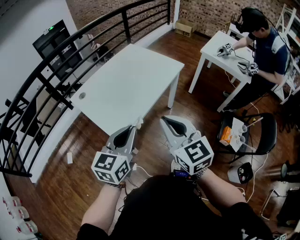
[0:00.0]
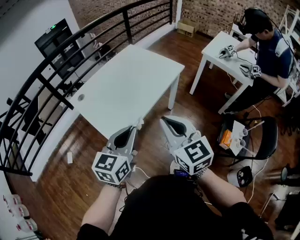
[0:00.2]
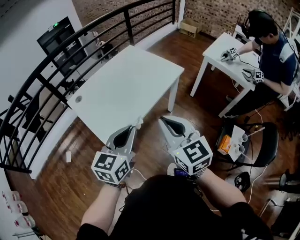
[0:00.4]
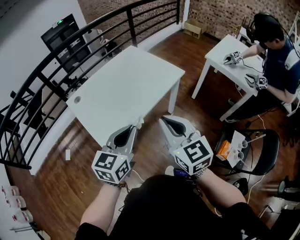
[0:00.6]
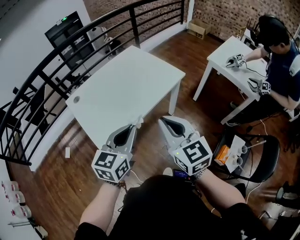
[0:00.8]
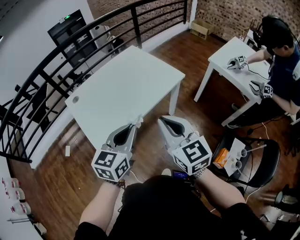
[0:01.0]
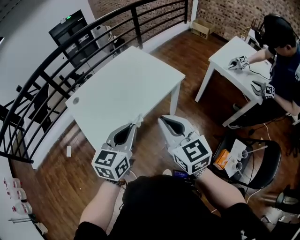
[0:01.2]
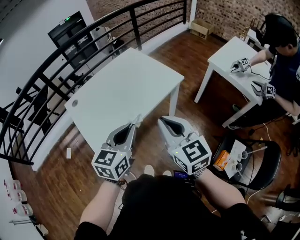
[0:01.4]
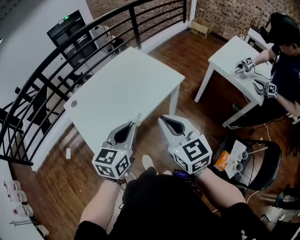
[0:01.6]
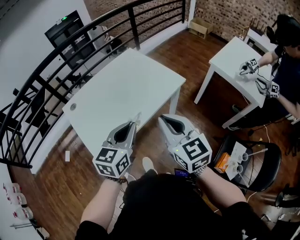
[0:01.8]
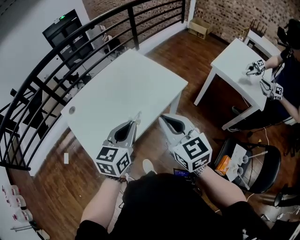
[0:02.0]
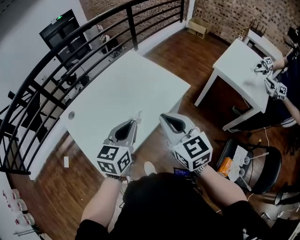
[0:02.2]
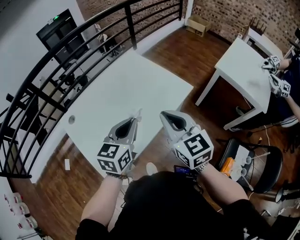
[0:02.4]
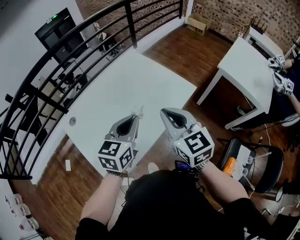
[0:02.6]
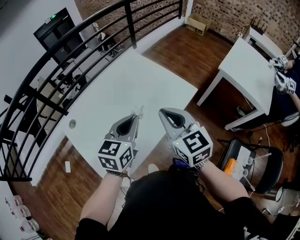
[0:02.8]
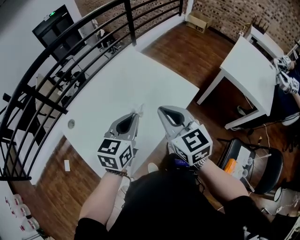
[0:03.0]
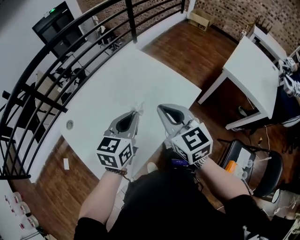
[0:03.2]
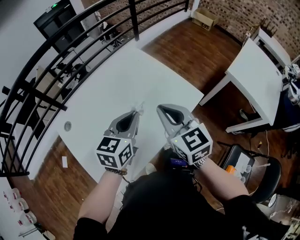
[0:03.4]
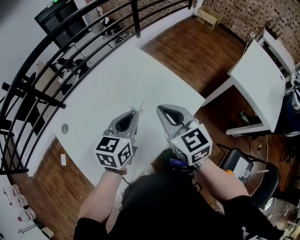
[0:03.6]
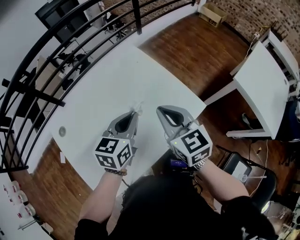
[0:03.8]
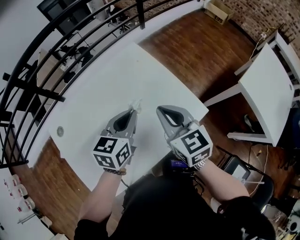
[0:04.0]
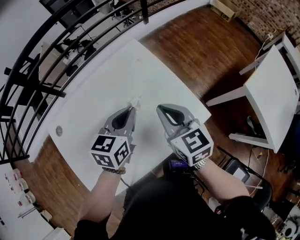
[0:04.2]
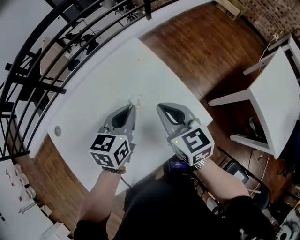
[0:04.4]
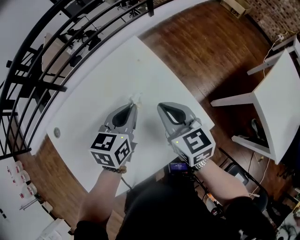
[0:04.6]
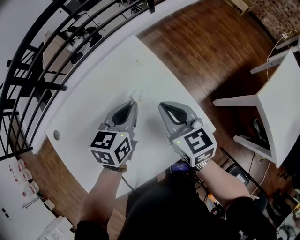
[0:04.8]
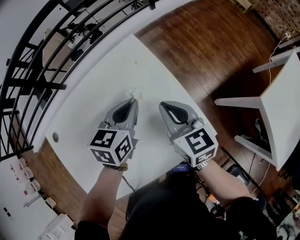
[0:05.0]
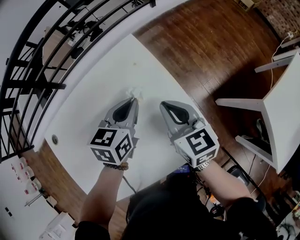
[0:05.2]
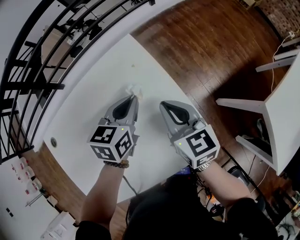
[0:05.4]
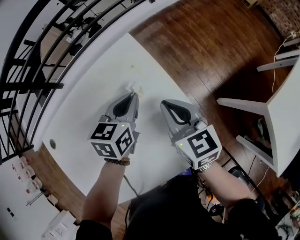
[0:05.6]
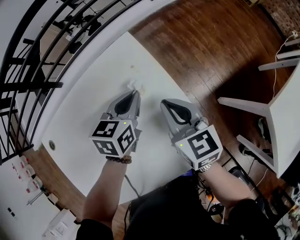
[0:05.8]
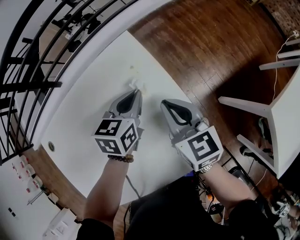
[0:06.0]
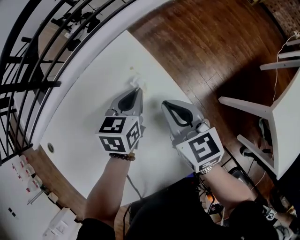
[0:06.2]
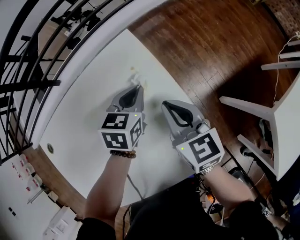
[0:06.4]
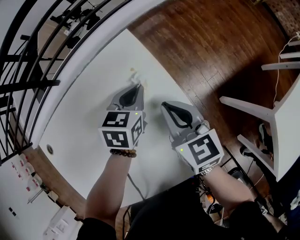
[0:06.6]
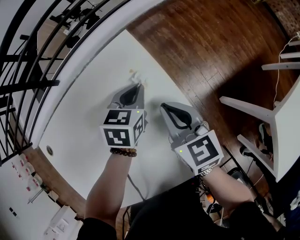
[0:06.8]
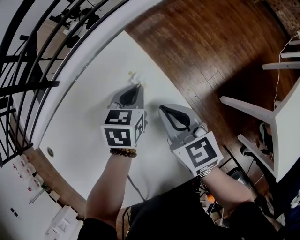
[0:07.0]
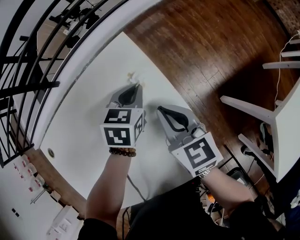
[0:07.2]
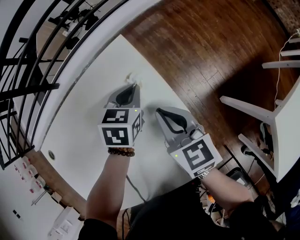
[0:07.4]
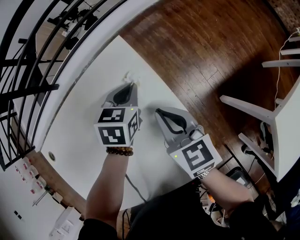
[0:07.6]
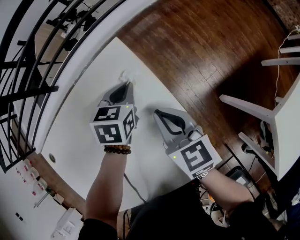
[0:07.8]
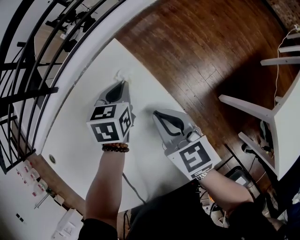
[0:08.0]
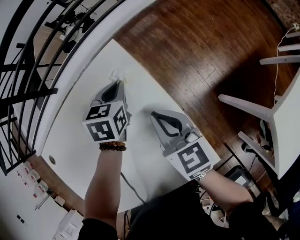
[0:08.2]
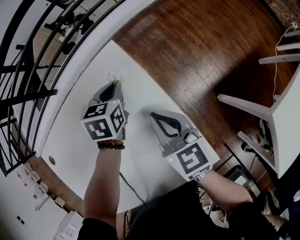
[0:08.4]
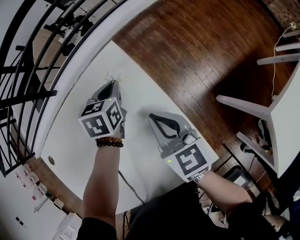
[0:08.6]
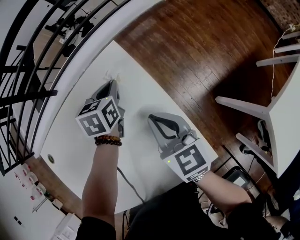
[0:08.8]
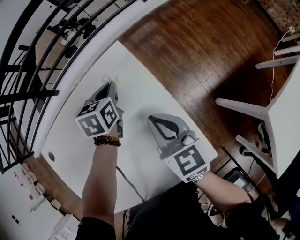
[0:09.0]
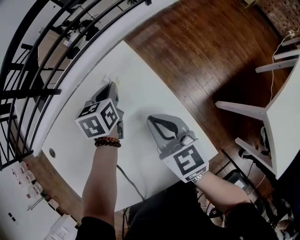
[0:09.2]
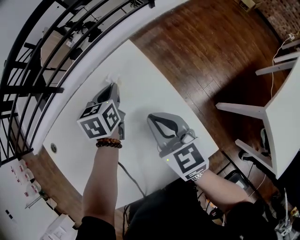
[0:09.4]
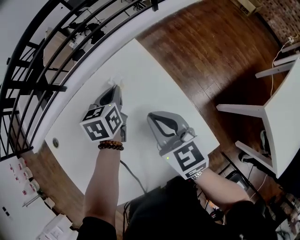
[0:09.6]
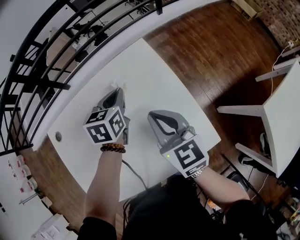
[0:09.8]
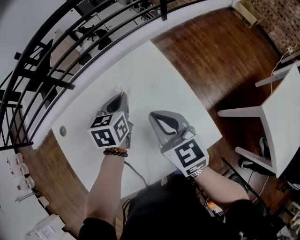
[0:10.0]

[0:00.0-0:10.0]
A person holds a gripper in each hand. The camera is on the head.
0:00.0 to 0:01.4: The grippers both shift to the right and forward by approximately 20 cm.
0:01.4 to 0:02.8: The left gripper heads forward, covering about 20 cm; the right gripper is displaced forward and to the left by approximately 20 cm.
0:02.8 to 0:04.2: The right gripper heads forward and downward, covering about 25 cm, while the left gripper heads forward, covering roughly 20 cm.
0:04.2 to 0:05.8: The grippers both shift forward and downward by approximately 20 cm.
0:05.8 to 0:07.2: The left gripper goes some 10 cm downward and forward.
0:07.2 to 0:08.6: The left gripper travels forward by roughly 5 cm.
0:08.6 to 0:10.0: The left gripper moves backward, upward and to the left, some 20 cm. The right gripper goes roughly 15 cm upward, to the left and backward.

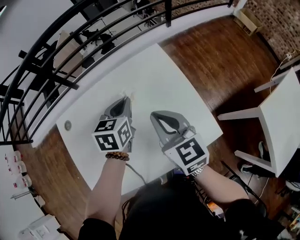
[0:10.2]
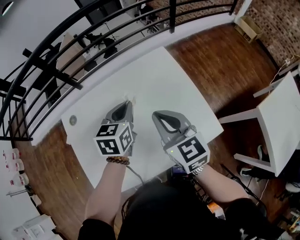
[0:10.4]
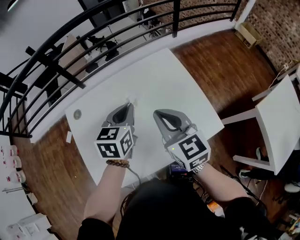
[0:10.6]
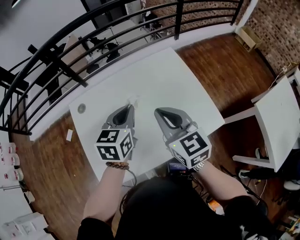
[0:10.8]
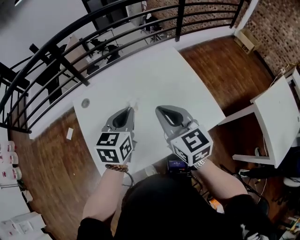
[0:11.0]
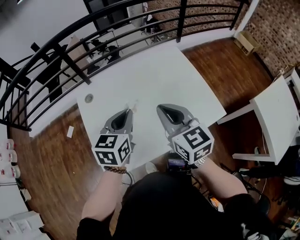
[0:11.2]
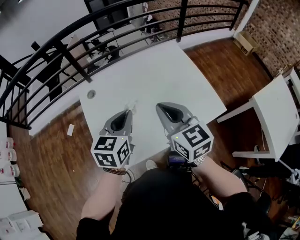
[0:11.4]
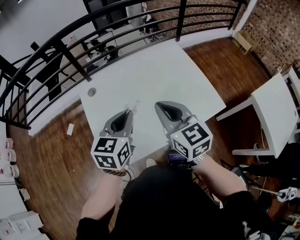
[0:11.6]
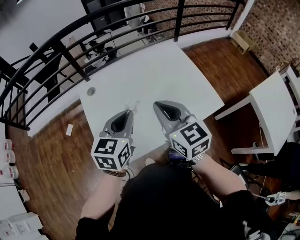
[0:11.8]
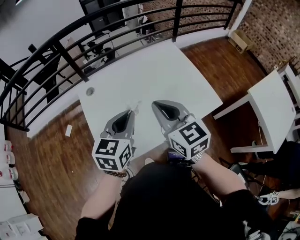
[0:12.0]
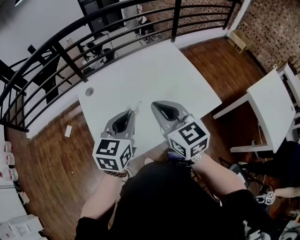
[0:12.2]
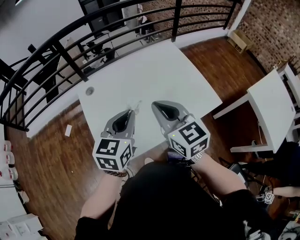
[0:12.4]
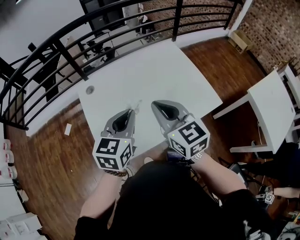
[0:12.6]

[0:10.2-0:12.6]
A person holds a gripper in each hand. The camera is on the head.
0:10.2 to 0:11.4: The left gripper is displaced backward and to the left by some 25 cm. The right gripper travels backward, to the left and upward by about 20 cm.
0:11.4 to 0:12.6: The left gripper shifts by some 5 cm.

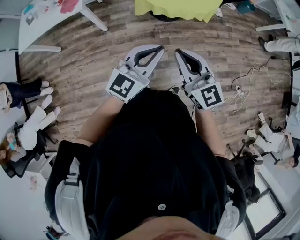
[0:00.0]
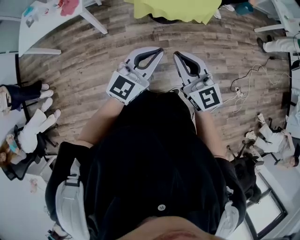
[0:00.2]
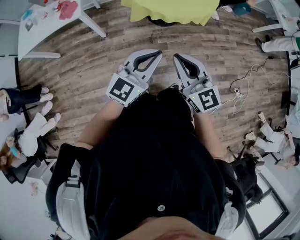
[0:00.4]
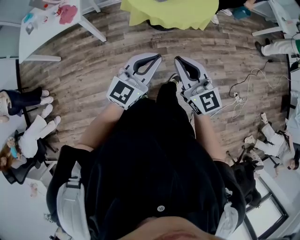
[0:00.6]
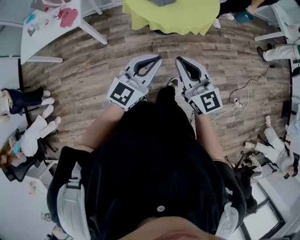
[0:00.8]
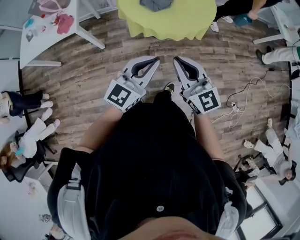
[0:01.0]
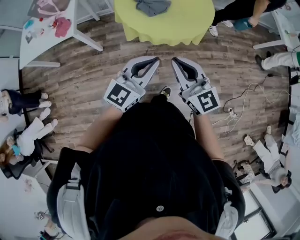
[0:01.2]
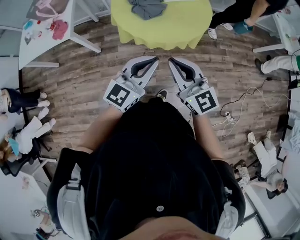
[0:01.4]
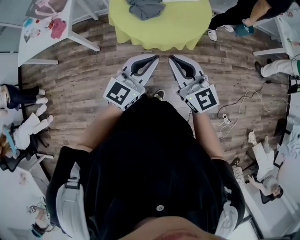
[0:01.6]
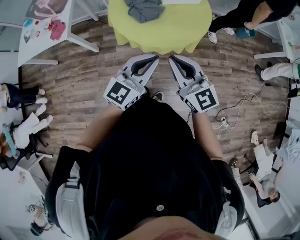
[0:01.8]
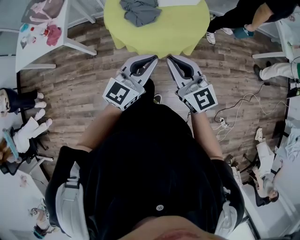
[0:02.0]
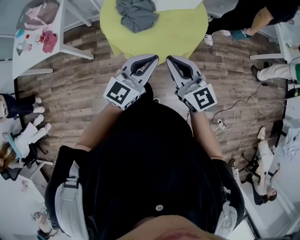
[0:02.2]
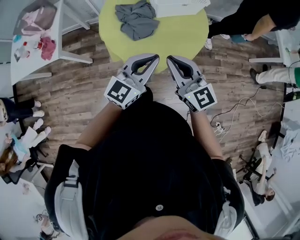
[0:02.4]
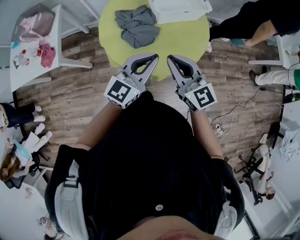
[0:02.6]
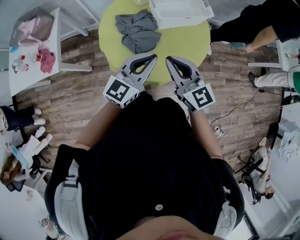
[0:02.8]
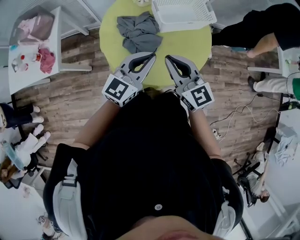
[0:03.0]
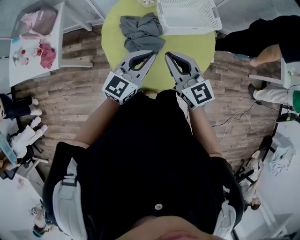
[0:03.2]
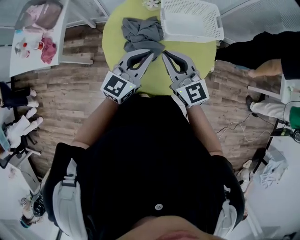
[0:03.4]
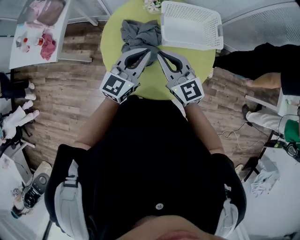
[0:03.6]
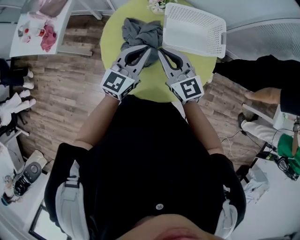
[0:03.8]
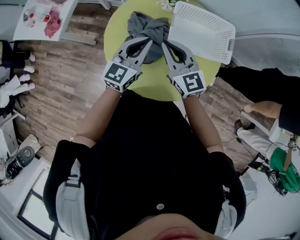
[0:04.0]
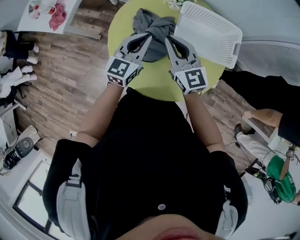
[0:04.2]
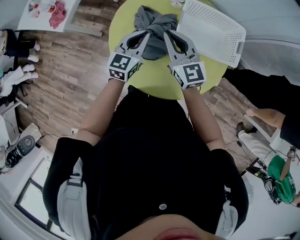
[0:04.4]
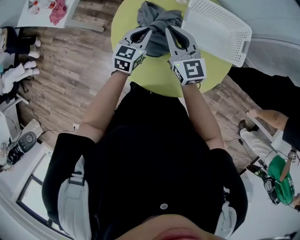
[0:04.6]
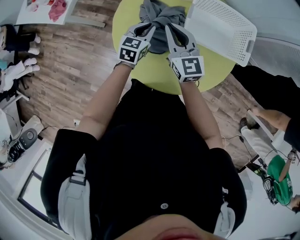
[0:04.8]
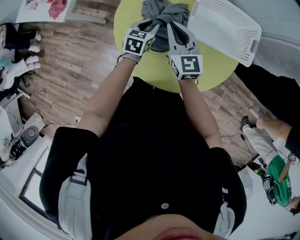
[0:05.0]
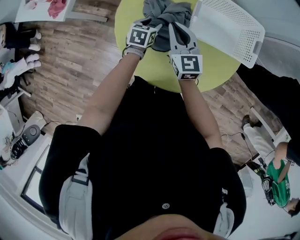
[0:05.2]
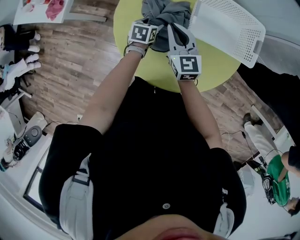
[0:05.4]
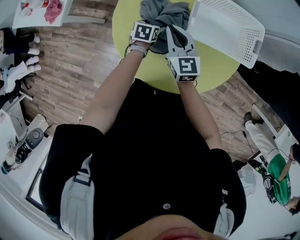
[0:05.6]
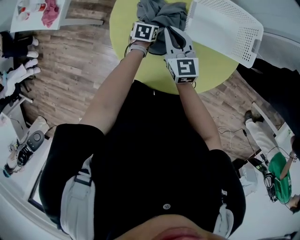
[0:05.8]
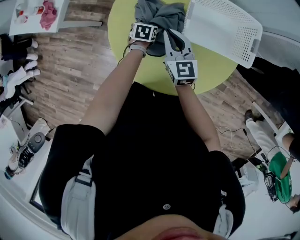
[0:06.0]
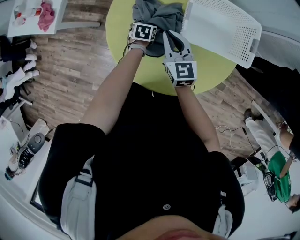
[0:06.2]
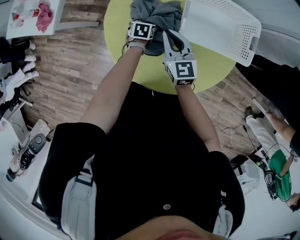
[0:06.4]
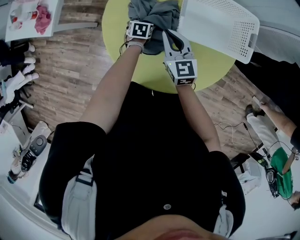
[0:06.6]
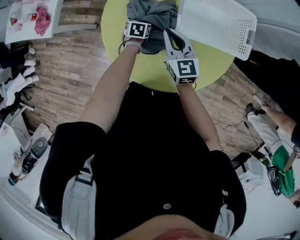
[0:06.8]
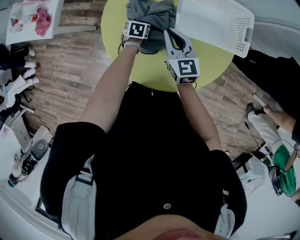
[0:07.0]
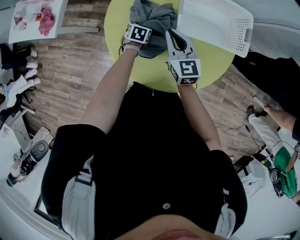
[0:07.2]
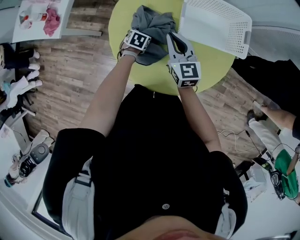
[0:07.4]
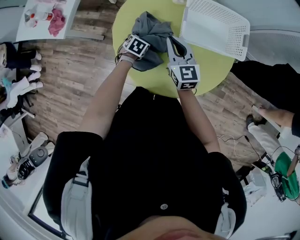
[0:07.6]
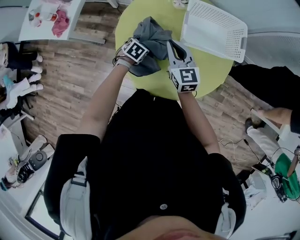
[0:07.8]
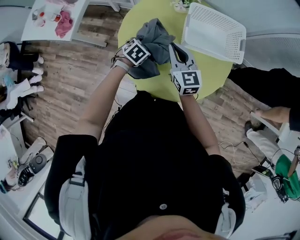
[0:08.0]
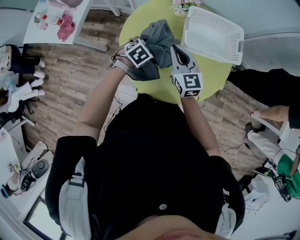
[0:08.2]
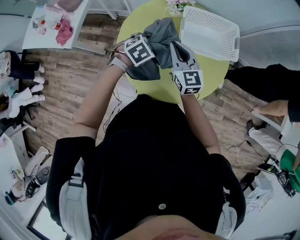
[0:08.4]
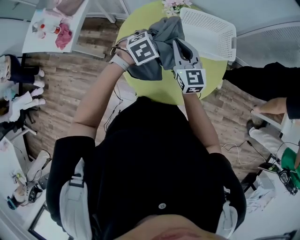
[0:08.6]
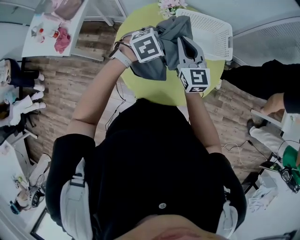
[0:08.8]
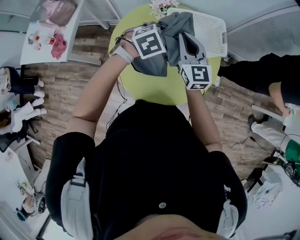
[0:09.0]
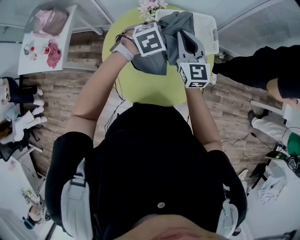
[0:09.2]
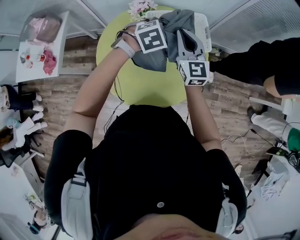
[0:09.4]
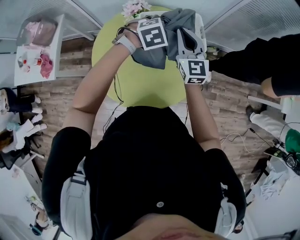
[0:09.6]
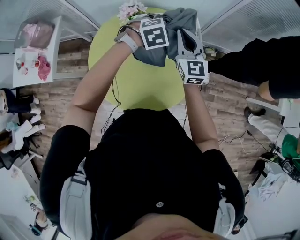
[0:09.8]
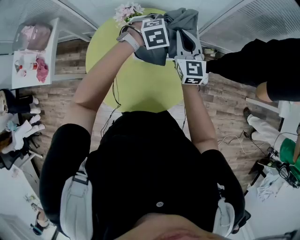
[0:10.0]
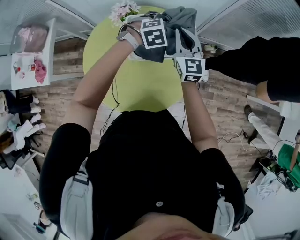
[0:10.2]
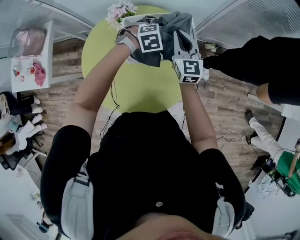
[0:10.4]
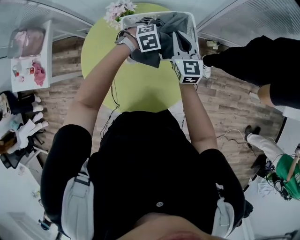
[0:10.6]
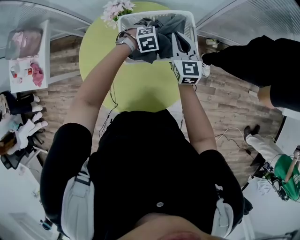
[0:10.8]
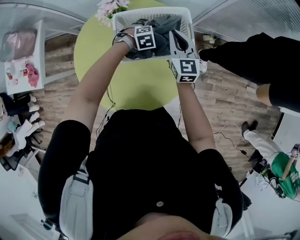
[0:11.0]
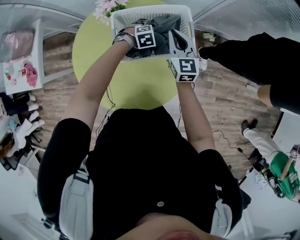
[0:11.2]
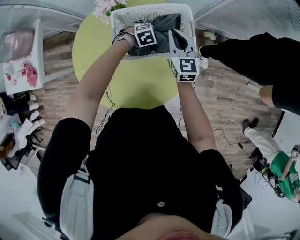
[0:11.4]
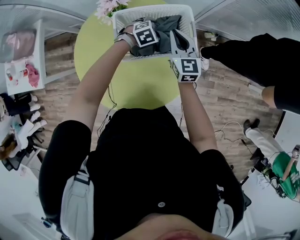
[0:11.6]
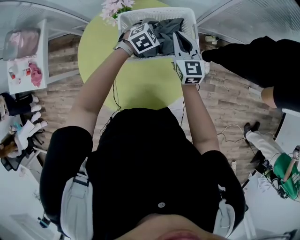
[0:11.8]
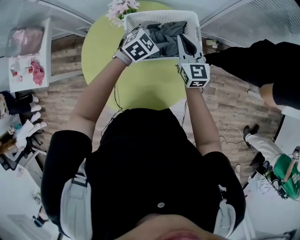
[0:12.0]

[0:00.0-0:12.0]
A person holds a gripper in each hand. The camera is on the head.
0:00.0 to 0:01.6: The two grippers go approximately 25 cm forward and to the right.
0:01.6 to 0:03.0: The grippers both shift forward by about 30 cm.
0:03.0 to 0:04.4: The left gripper ends up approximately 20 cm from where it was, and turns by about 40 degrees. Meanwhile the right gripper moves about 20 cm.
0:04.4 to 0:06.0: The right gripper shifts some 10 cm downward. Meanwhile the left gripper goes some 25 cm downward, tips its fingers downward by about 40 degrees, and opens its fingers.
0:06.0 to 0:07.6: The left gripper shifts some 5 cm backward, and changes its angle by some 30 degrees; the right gripper moves roughly 5 cm.
0:07.6 to 0:09.0: The left gripper heads upward and to the right, covering about 30 cm, and rolls clockwise, seen from behind, by approximately 40 degrees, while the right gripper heads upward and to the right, covering roughly 15 cm.
0:09.0 to 0:10.4: Both grippers move forward, to the right and downward, some 25 cm.
0:10.4 to 0:12.0: The left gripper reaches roughly 15 cm downward, then returns, and rotates about 30 degrees.
